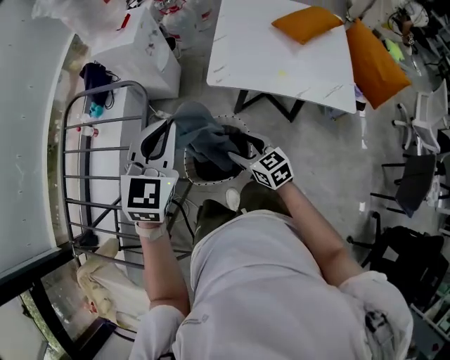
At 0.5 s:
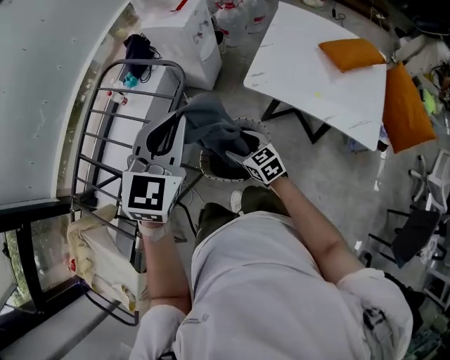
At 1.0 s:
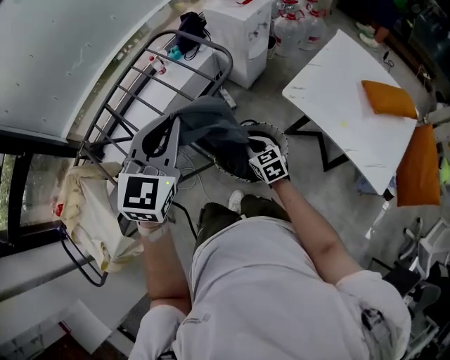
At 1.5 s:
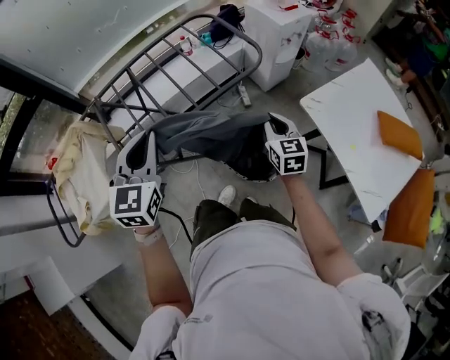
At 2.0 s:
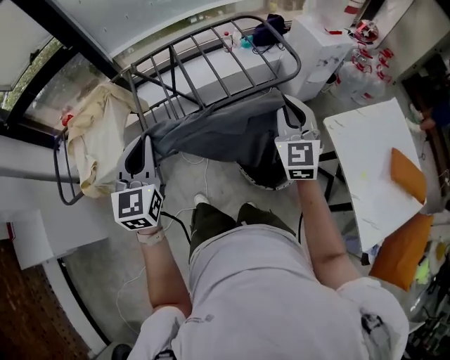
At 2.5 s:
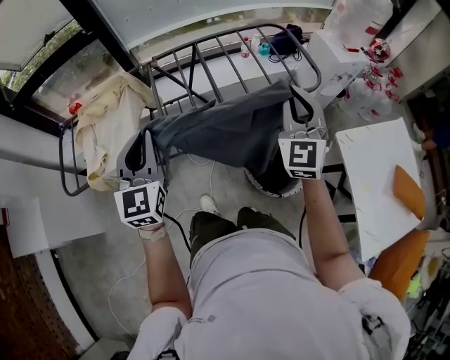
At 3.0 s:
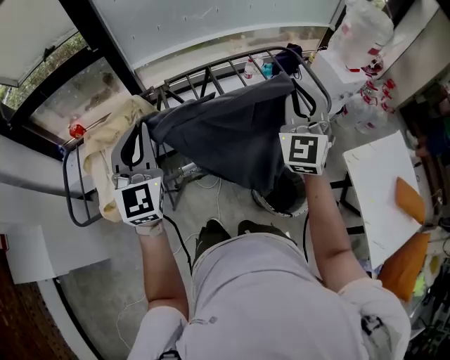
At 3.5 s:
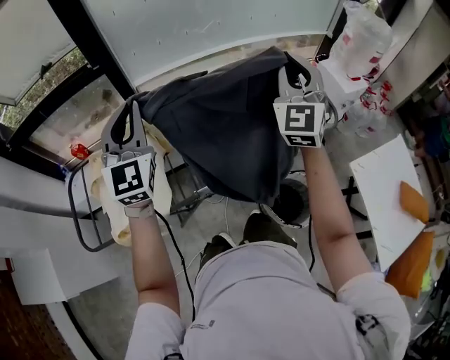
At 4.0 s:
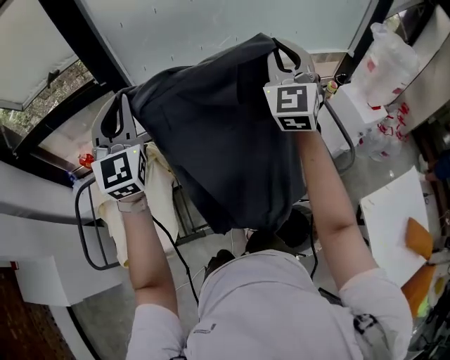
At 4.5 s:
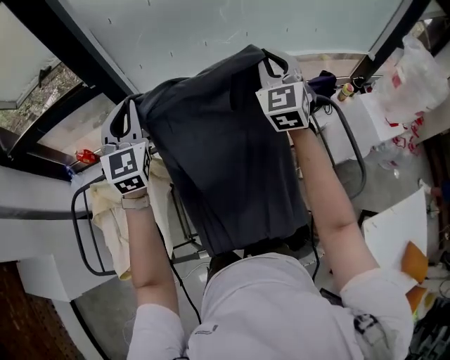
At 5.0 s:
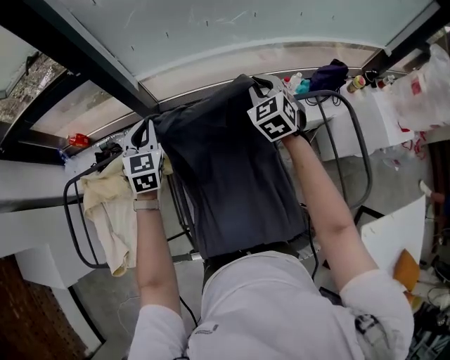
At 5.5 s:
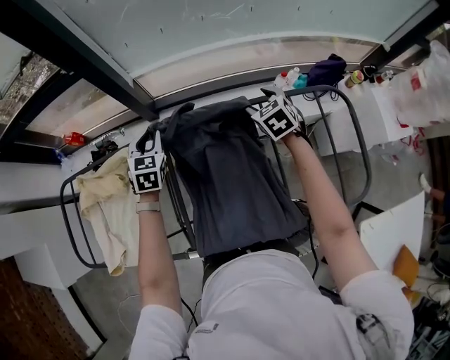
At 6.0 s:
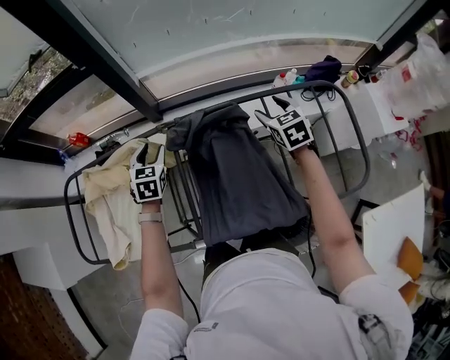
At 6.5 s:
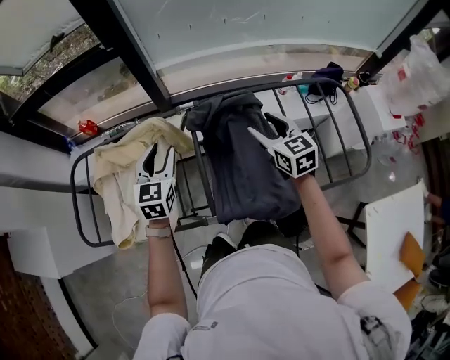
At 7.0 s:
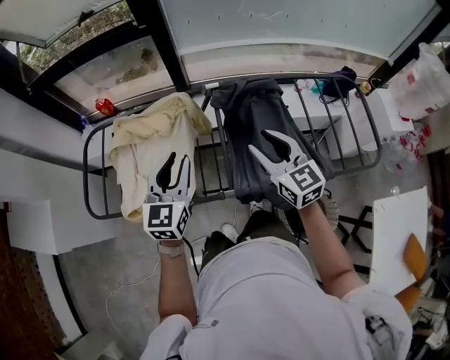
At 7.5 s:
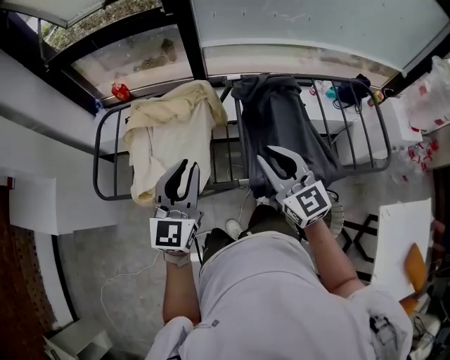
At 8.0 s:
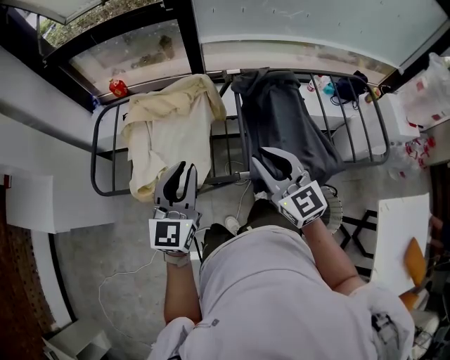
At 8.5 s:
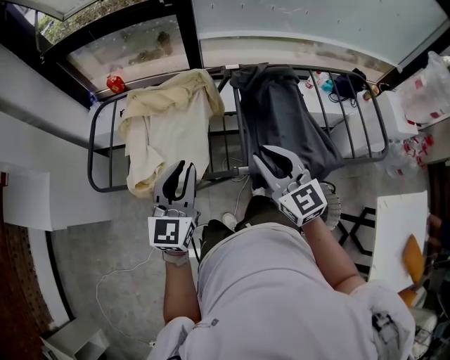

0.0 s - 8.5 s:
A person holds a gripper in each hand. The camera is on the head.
0.0 s - 2.0 s: The left gripper changes place by about 40 cm, and turns by approximately 80 degrees, while the right gripper heads upward, covering about 25 cm, rolls counterclockwise, seen from behind, by approximately 40 degrees, and closes.
2.0 s - 4.0 s: The two grippers travel together, forward and to the left, approximately 40 cm. The grippers both shift upward by about 20 cm. The left gripper turns by approximately 30 degrees. The right gripper rotates approximately 20 degrees.
4.0 s - 6.5 s: The grippers both shift downward by some 30 cm. The left gripper tips its fingers downward by roughly 30 degrees, and opens its fingers. Meanwhile the right gripper tips its fingers downward by roughly 30 degrees, and opens.
6.5 s - 8.5 s: The left gripper moves backward and to the left, roughly 25 cm, and closes. The right gripper shifts roughly 30 cm to the left and backward, and closes up.

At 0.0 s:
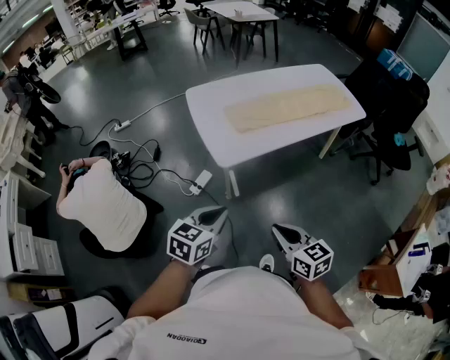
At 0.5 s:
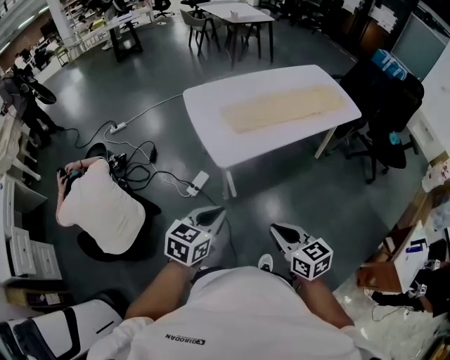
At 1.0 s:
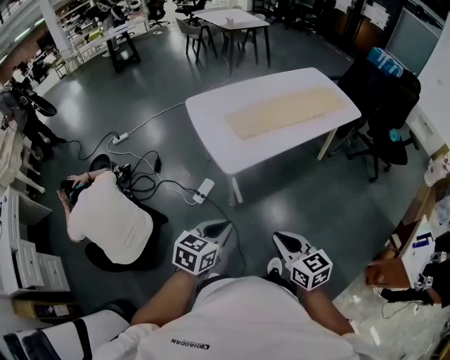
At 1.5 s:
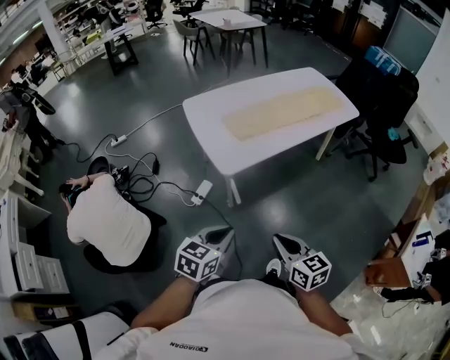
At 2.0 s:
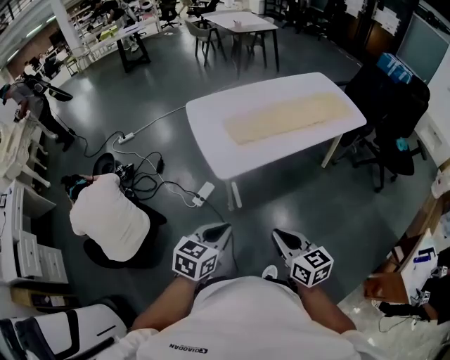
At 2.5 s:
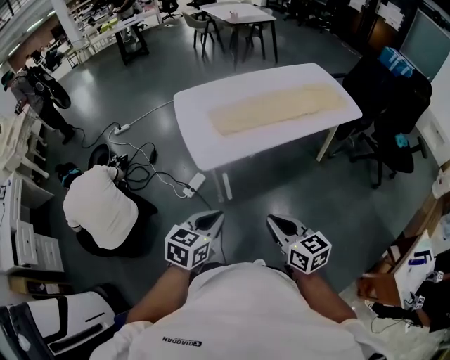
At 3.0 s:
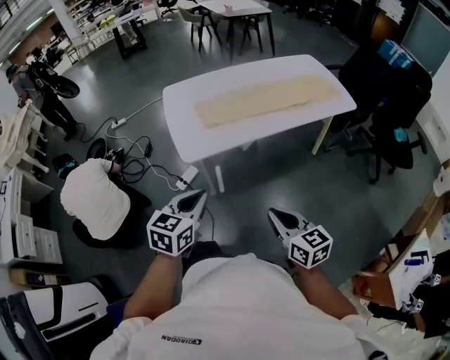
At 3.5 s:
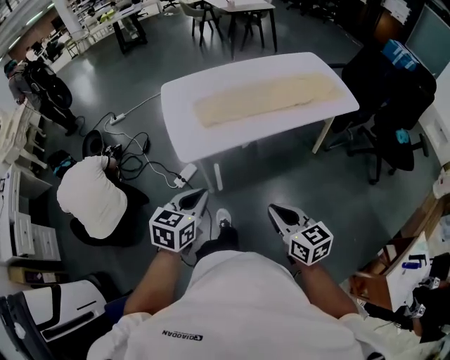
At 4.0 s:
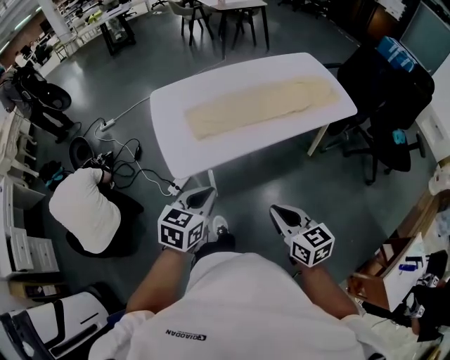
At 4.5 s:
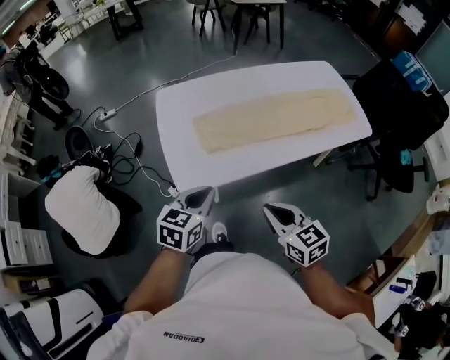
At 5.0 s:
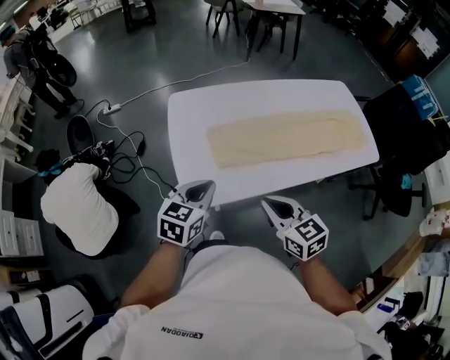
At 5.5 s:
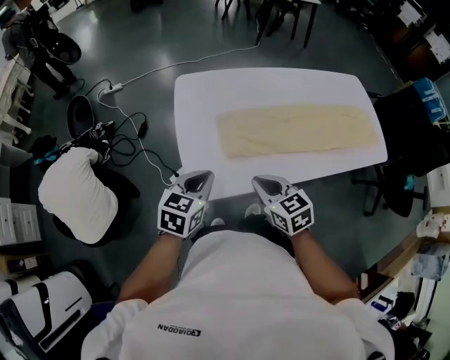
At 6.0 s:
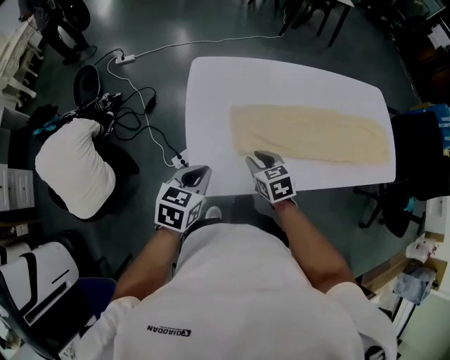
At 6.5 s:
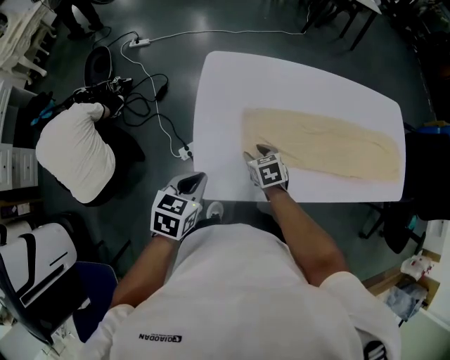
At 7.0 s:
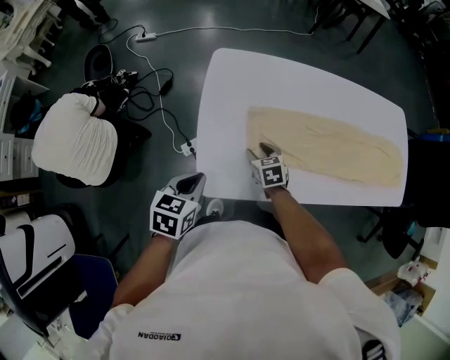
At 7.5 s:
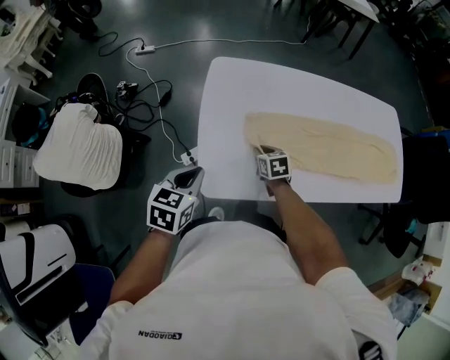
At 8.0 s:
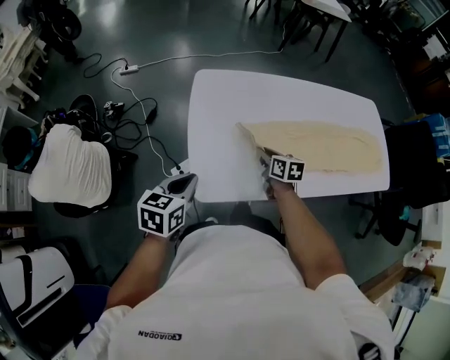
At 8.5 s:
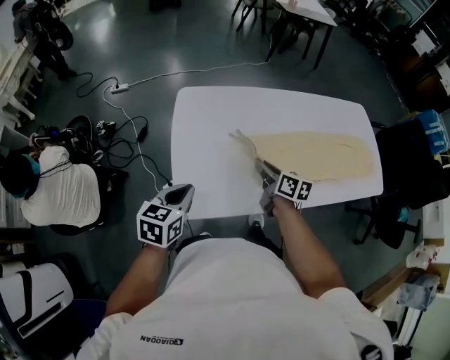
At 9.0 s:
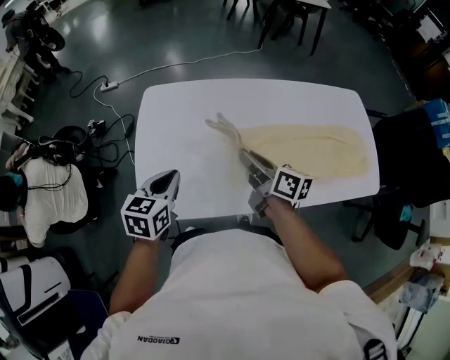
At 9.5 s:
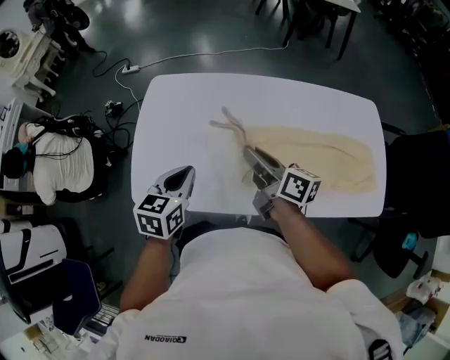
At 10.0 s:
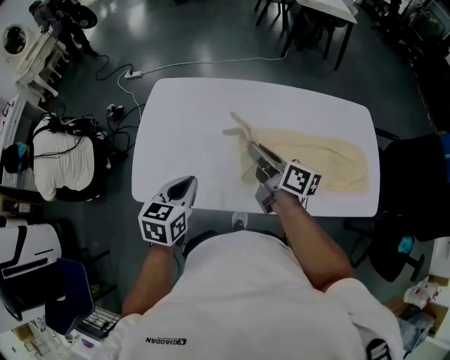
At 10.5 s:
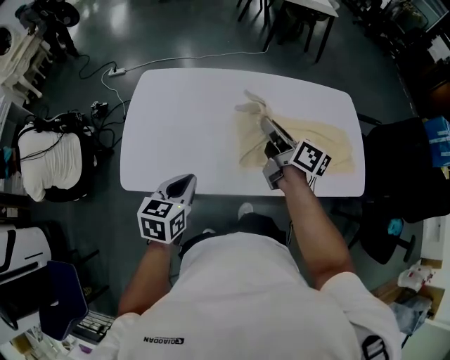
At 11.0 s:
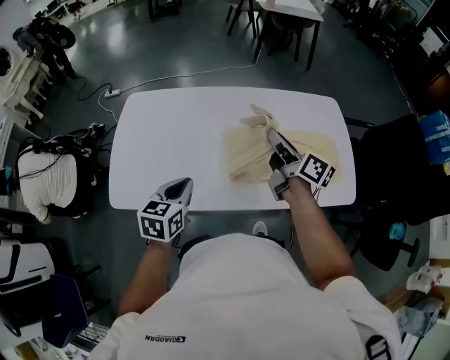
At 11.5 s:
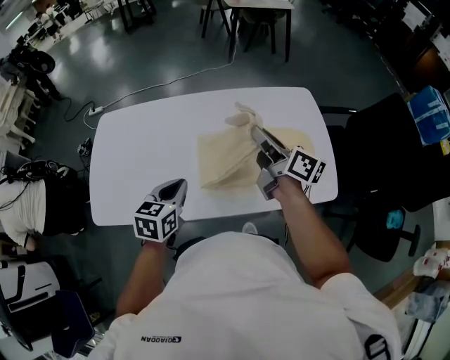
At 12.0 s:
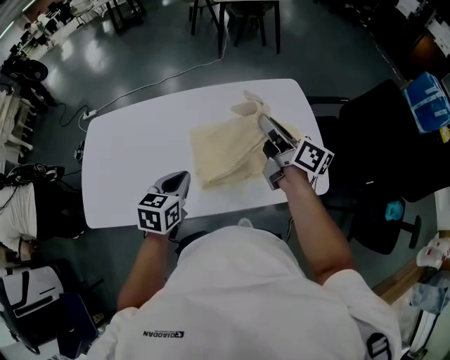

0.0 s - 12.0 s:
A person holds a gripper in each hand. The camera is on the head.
0.0 s - 2.0 s: There are only small adjustments of the grippers.
2.0 s - 4.0 s: The right gripper shifts about 25 cm to the right and forward; the left gripper heads forward and to the right, covering approximately 25 cm.
4.0 s - 6.0 s: The right gripper travels forward, to the left and downward by roughly 50 cm, changes its angle by approximately 30 degrees, and opens up, while the left gripper shifts some 30 cm forward and to the left, and rotates roughly 20 degrees.
6.0 s - 8.0 s: The right gripper heads forward, covering some 5 cm, reaches roughly 10 cm downward, then returns, rotates roughly 30 degrees, and opens, then closes once more. The left gripper travels to the left by some 5 cm.
8.0 s - 10.0 s: The right gripper goes approximately 30 cm to the right and upward, and tilts its fingers approximately 30 degrees upward, while the left gripper heads to the right, covering about 35 cm.
10.0 s - 12.0 s: Both grippers move to the right, about 35 cm. The right gripper rotates approximately 20 degrees.

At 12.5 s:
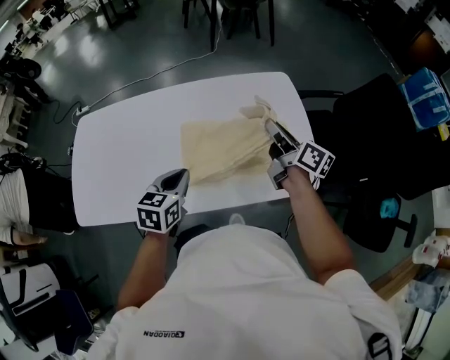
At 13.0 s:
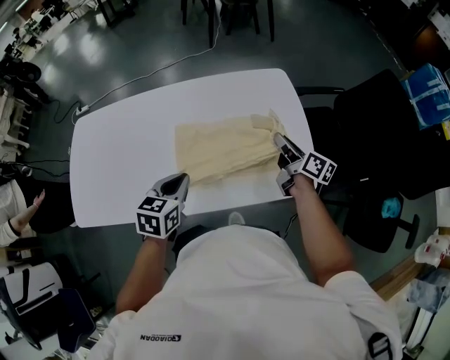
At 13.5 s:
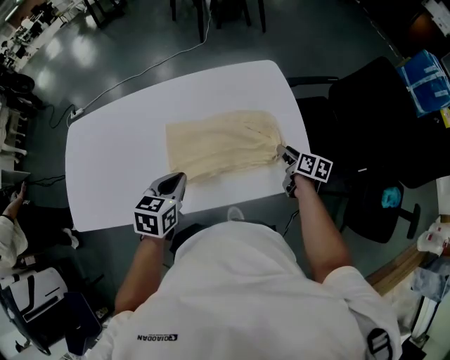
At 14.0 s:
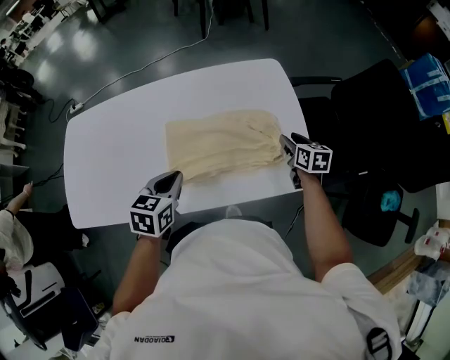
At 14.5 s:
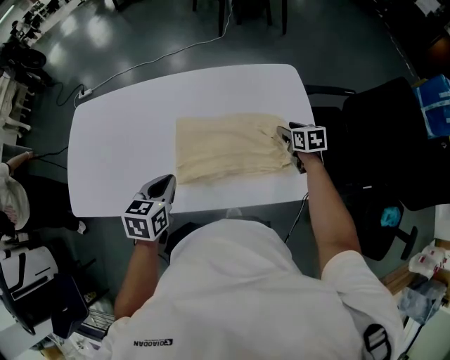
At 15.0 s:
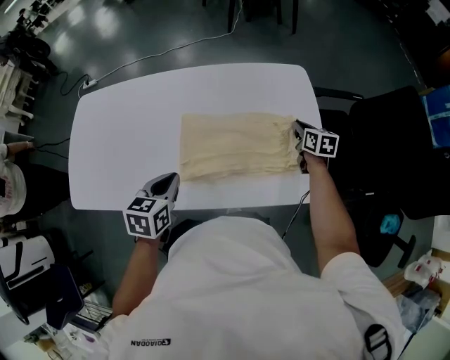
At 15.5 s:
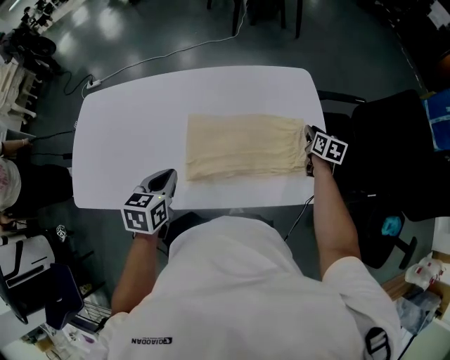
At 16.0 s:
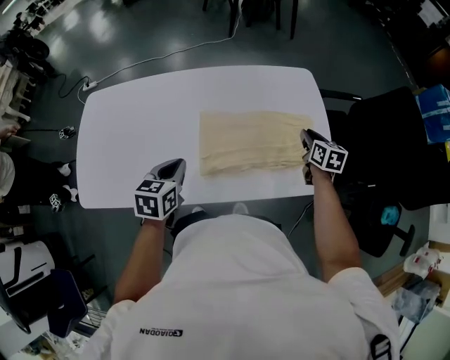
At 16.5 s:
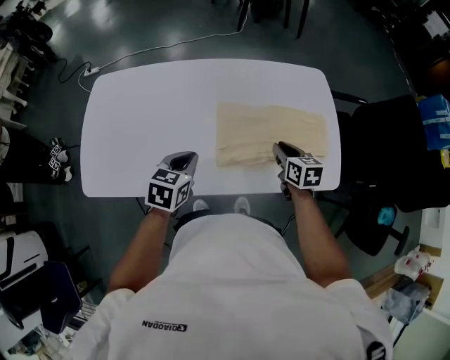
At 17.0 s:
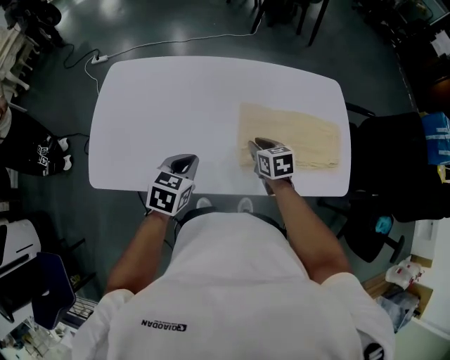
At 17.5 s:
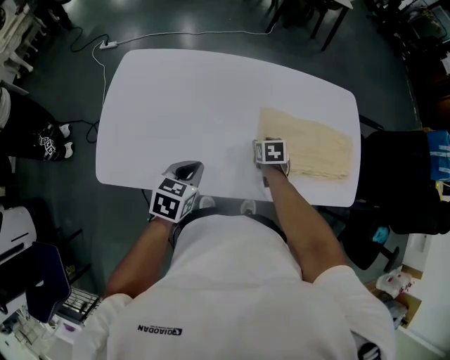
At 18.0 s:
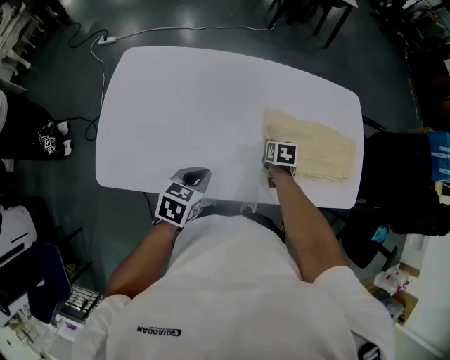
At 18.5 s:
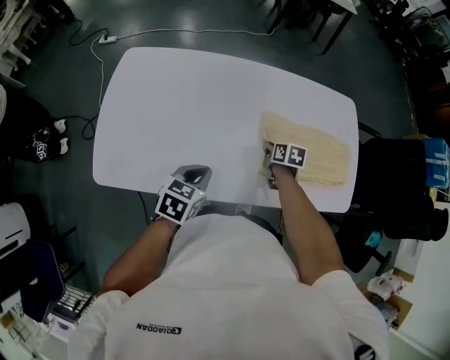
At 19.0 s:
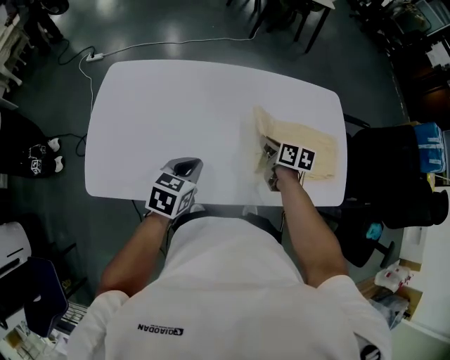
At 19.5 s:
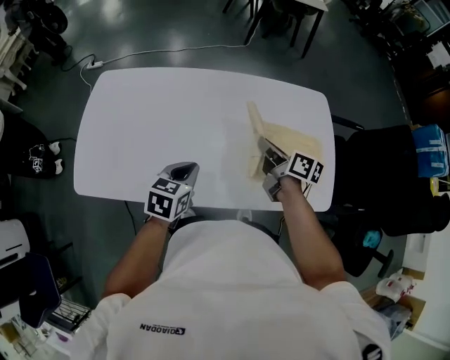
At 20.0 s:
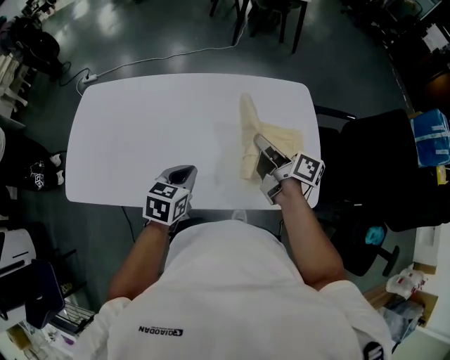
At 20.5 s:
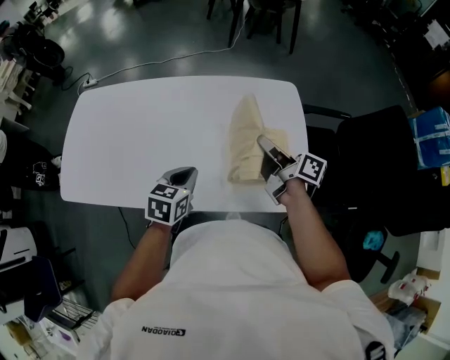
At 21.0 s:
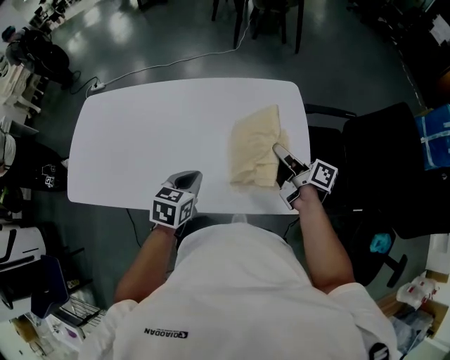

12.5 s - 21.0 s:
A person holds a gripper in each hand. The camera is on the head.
12.5 s - 14.5 s: The right gripper moves downward, to the right and forward, about 25 cm, points its fingers about 40 degrees further downward, and opens.
14.5 s - 16.5 s: The left gripper travels to the left by some 10 cm, while the right gripper is displaced to the left and backward by roughly 25 cm, and closes its fingers.
16.5 s - 19.0 s: The left gripper moves to the left, about 10 cm. Meanwhile the right gripper moves to the left, some 15 cm, and opens, then closes again.
19.0 s - 21.0 s: The two grippers go roughly 35 cm to the right. The right gripper tilts its fingers about 40 degrees upward.
